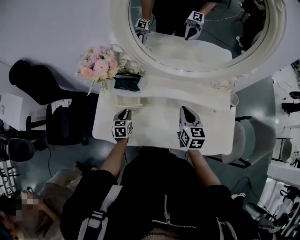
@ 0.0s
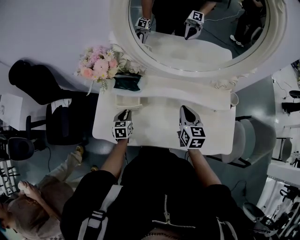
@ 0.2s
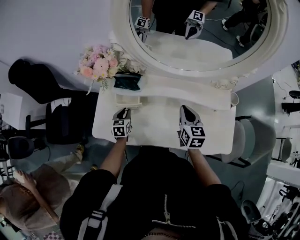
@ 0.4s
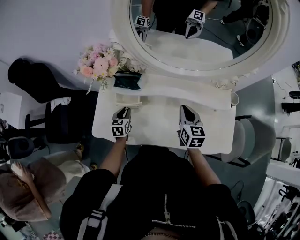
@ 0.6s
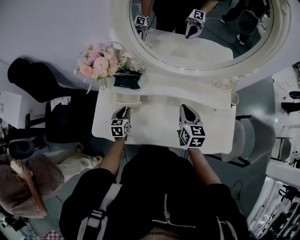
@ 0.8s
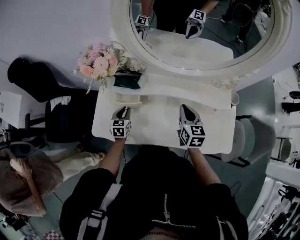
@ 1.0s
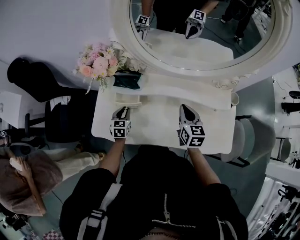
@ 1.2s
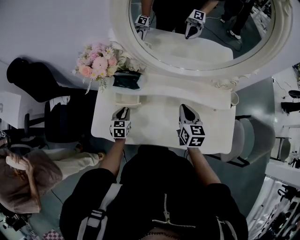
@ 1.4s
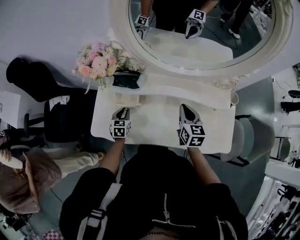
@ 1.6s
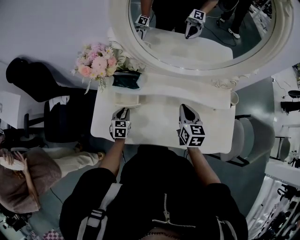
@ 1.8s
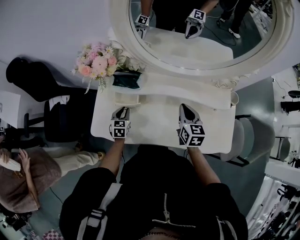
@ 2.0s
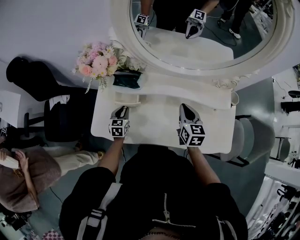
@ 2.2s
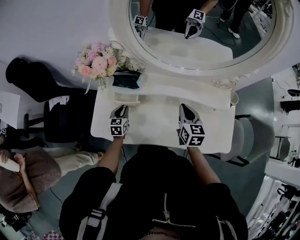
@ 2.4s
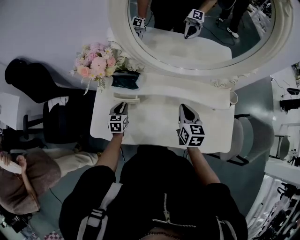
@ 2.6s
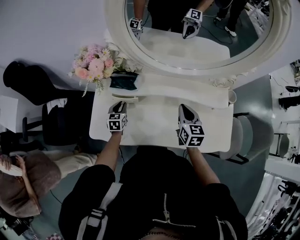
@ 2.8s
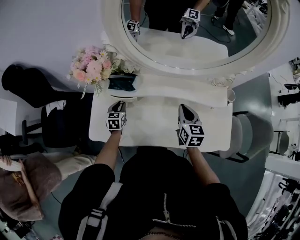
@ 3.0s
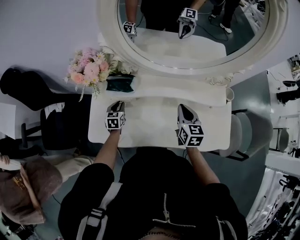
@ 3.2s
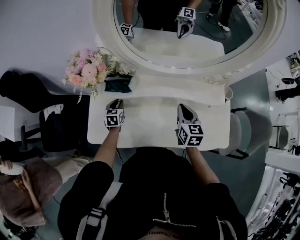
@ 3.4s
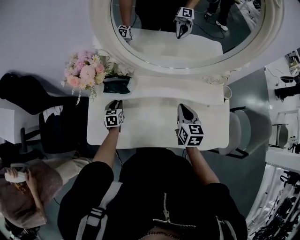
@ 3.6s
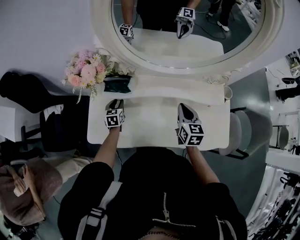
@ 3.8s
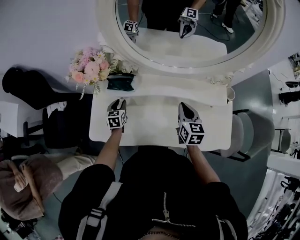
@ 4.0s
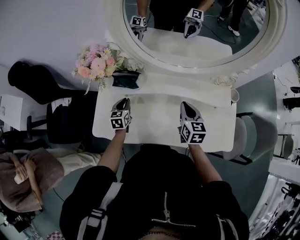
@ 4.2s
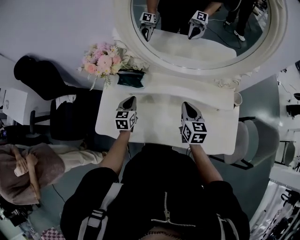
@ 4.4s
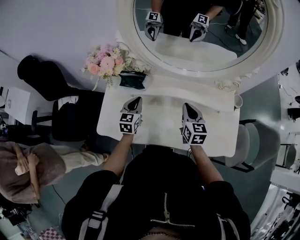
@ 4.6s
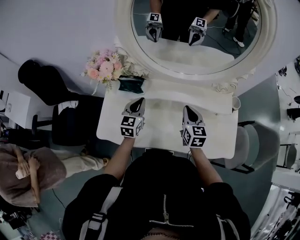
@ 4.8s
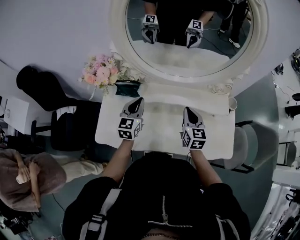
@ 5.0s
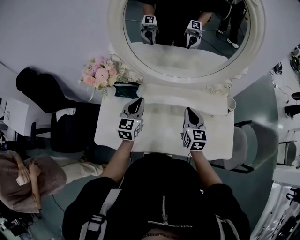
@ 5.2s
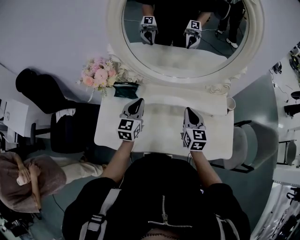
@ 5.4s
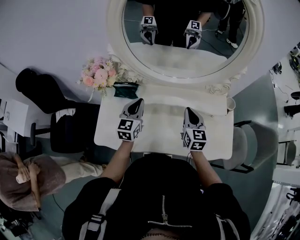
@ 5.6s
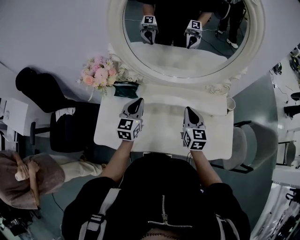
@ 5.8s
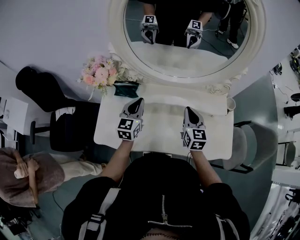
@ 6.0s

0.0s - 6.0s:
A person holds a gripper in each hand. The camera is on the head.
0.0s - 1.6s: The grippers stay close to where they were, moving slightly.
1.6s - 3.0s: The left gripper moves forward, roughly 5 cm.
3.0s - 4.4s: The left gripper is displaced upward by approximately 10 cm.
4.4s - 6.0s: The right gripper ends up about 5 cm from where it was. Meanwhile the left gripper is displaced upward and to the right by about 15 cm.

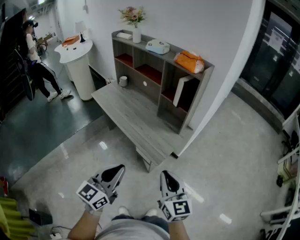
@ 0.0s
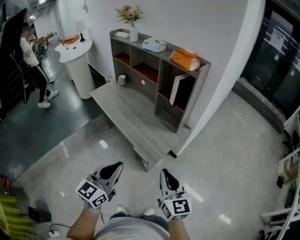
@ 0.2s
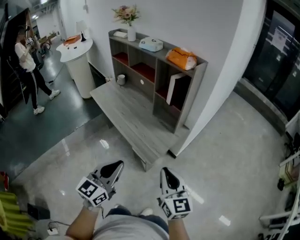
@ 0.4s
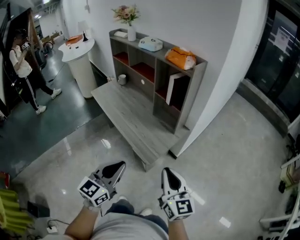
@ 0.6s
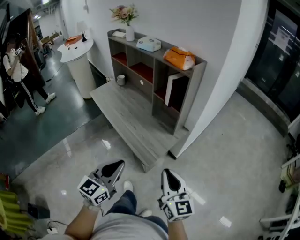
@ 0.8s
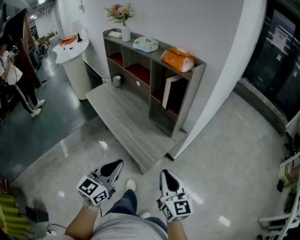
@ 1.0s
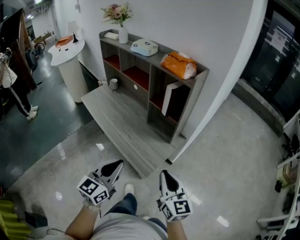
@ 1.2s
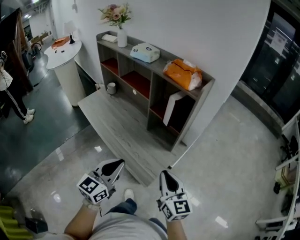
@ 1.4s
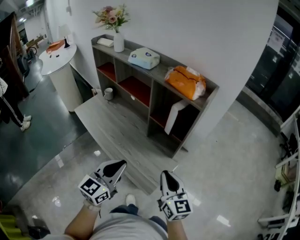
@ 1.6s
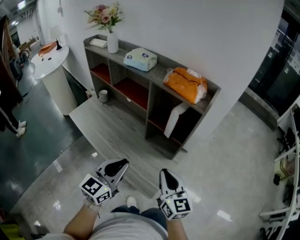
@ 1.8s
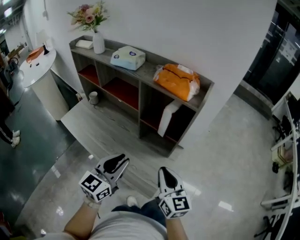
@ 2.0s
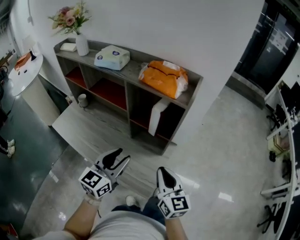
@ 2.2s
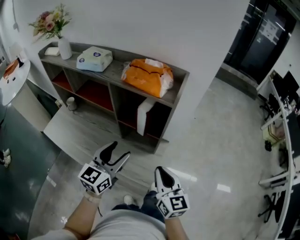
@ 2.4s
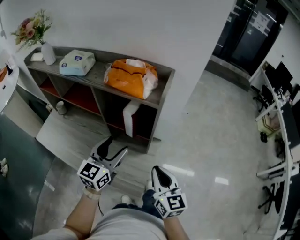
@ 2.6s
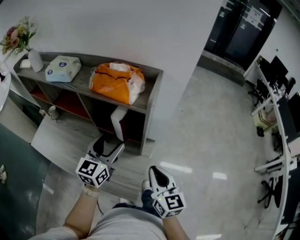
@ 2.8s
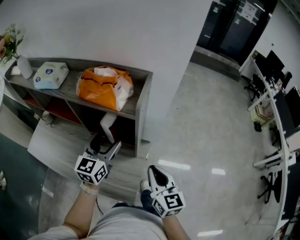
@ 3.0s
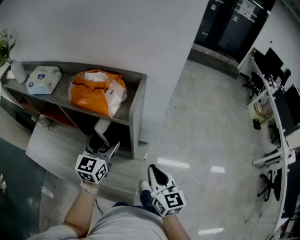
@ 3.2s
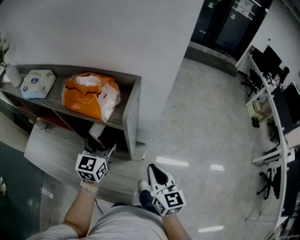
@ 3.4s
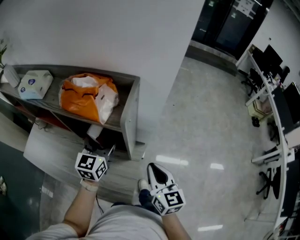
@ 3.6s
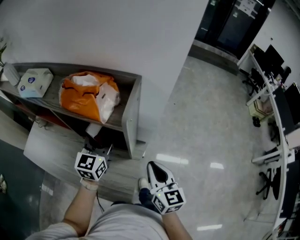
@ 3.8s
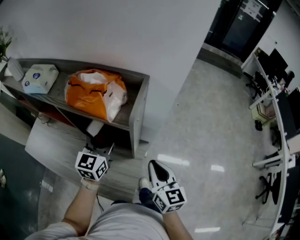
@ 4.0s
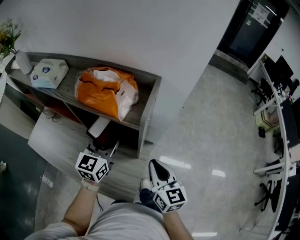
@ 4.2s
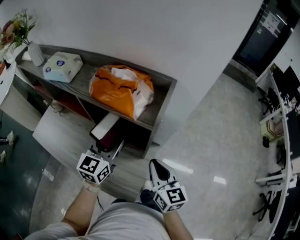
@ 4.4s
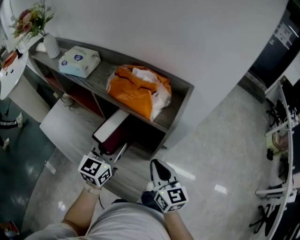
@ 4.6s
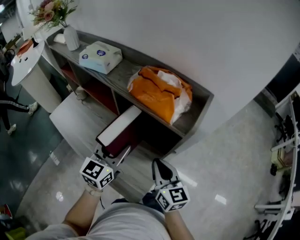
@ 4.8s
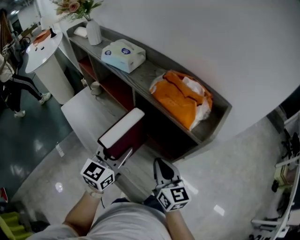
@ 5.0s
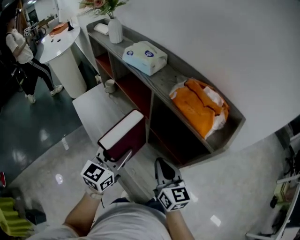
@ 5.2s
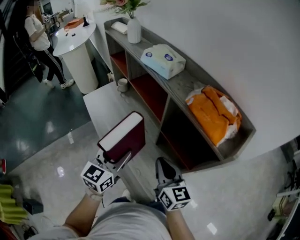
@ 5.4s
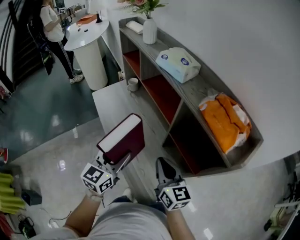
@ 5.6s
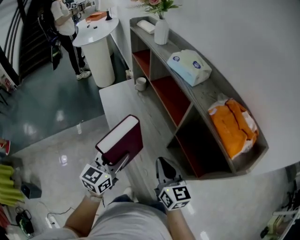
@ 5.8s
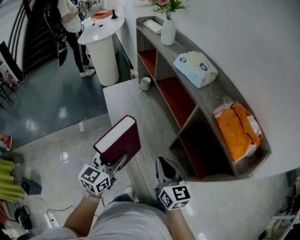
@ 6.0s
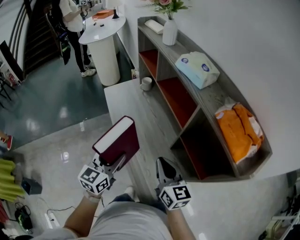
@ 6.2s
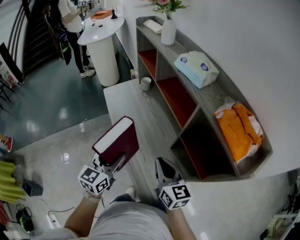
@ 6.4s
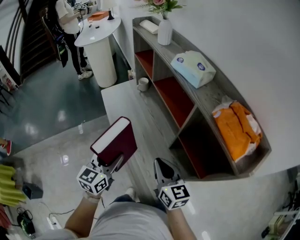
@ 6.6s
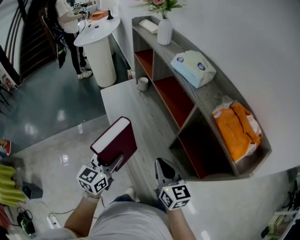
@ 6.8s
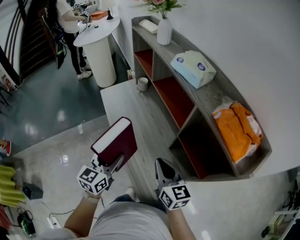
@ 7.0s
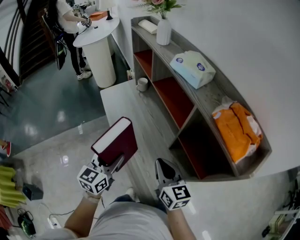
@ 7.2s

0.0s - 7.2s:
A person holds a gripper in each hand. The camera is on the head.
0.0s - 1.4s: Both grippers travel together forward, approximately 20 cm.
1.4s - 2.8s: The right gripper heads forward, covering some 15 cm, and swivels roughly 20 degrees. Meanwhile the left gripper is displaced forward by approximately 30 cm, and opens its fingers.
2.8s - 4.4s: The grippers both shift forward by about 5 cm.
4.4s - 5.8s: The left gripper moves about 30 cm, and rotates about 40 degrees; the right gripper moves some 25 cm, and rotates approximately 40 degrees.
5.8s - 7.2s: There are only small adjustments of the grippers.

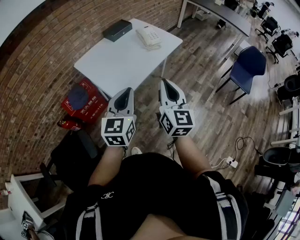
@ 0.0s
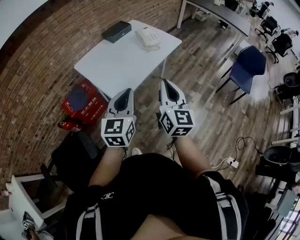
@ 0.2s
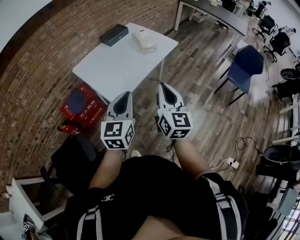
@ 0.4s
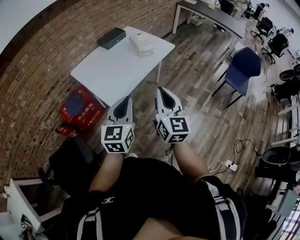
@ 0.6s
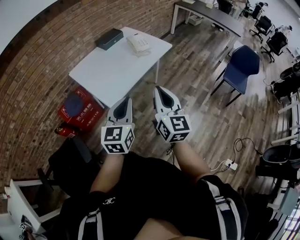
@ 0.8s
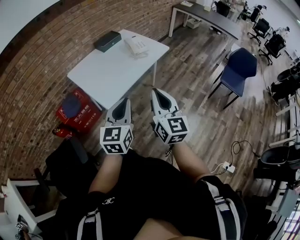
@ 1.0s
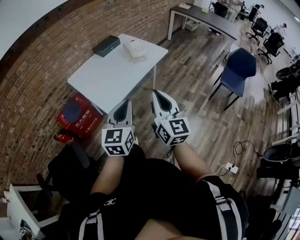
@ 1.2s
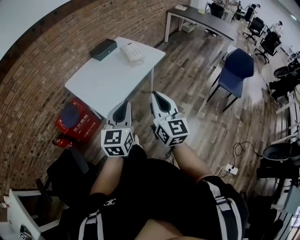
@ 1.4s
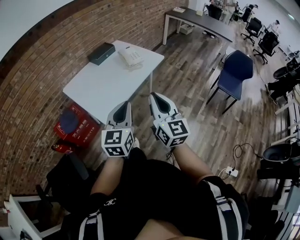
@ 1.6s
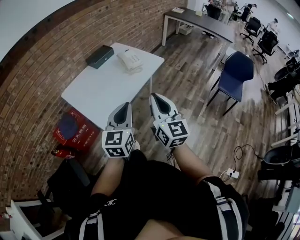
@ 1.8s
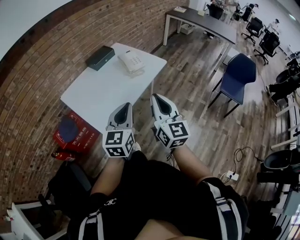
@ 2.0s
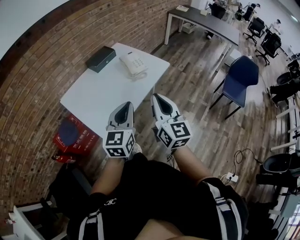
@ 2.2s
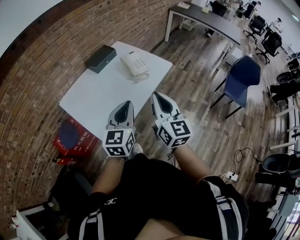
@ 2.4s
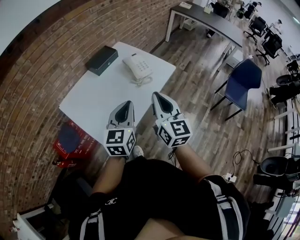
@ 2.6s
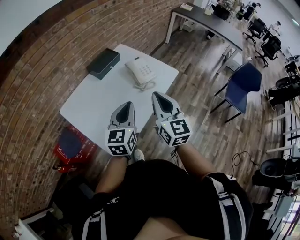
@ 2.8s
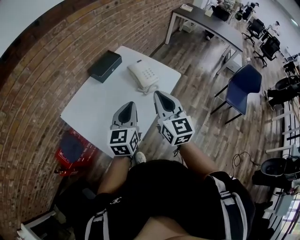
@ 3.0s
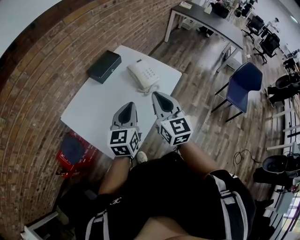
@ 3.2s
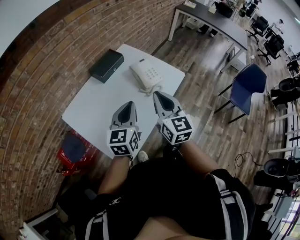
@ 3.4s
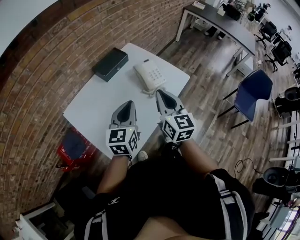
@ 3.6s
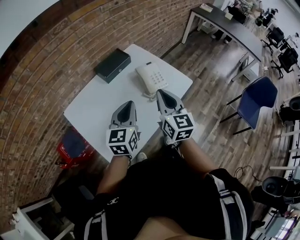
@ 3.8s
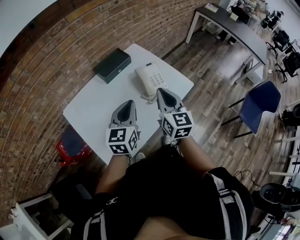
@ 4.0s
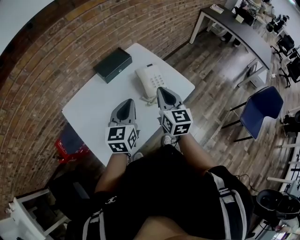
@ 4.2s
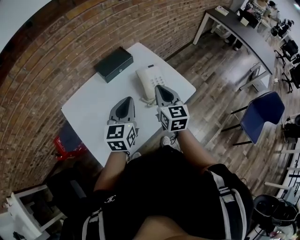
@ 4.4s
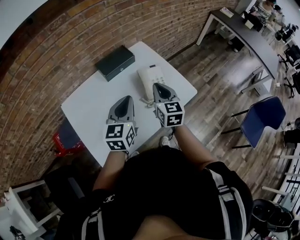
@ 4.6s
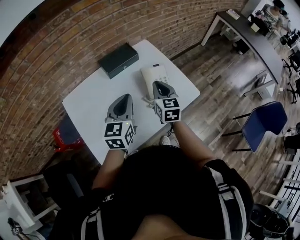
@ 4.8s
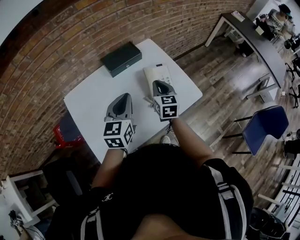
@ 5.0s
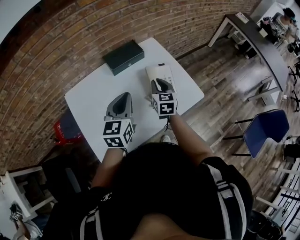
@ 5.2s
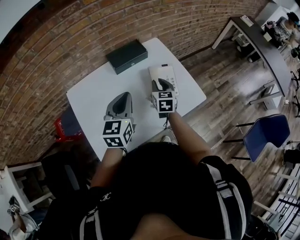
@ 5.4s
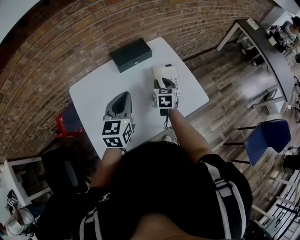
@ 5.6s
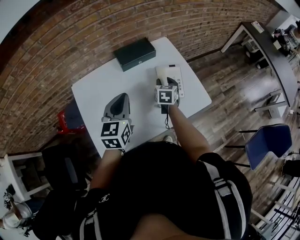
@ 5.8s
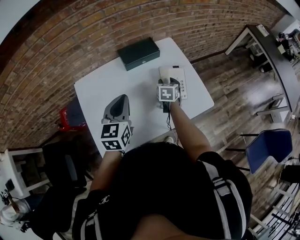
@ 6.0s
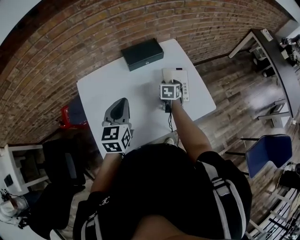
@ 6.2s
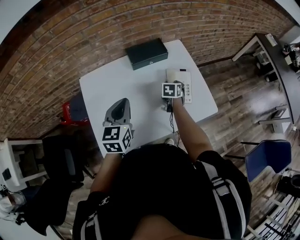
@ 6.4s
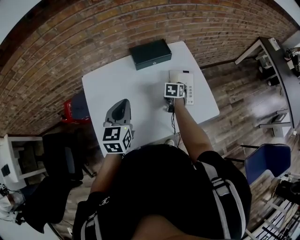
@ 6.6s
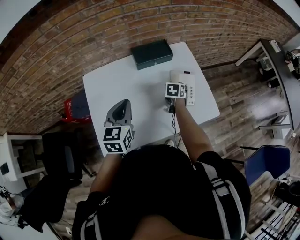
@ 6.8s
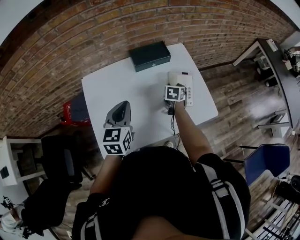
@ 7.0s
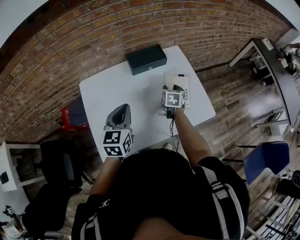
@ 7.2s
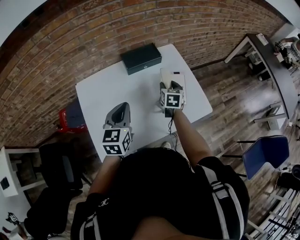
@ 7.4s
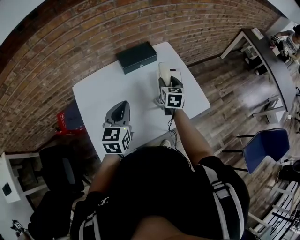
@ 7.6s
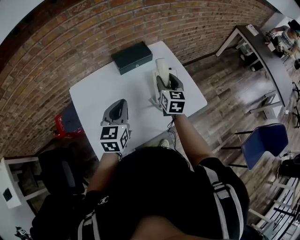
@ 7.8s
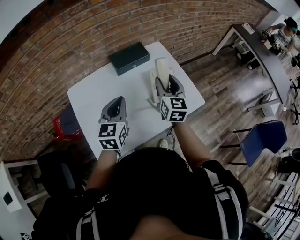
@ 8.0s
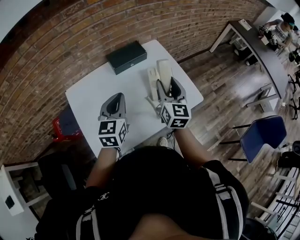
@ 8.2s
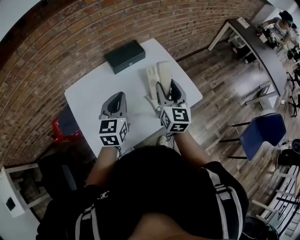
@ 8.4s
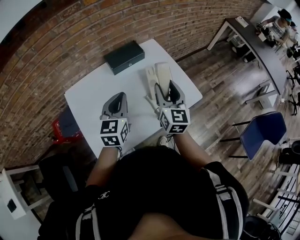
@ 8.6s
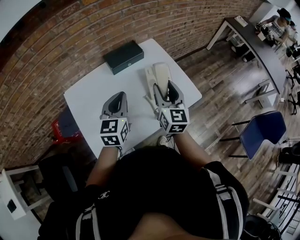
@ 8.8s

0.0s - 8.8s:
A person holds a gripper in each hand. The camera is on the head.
0.0s - 1.4s: Both grippers move to the right, approximately 10 cm.
1.4s - 3.0s: The two grippers go some 35 cm forward.
3.0s - 4.4s: The right gripper heads forward and downward, covering some 20 cm. Meanwhile the left gripper is displaced forward by approximately 15 cm.
4.4s - 5.8s: The left gripper travels to the left by approximately 5 cm. Meanwhile the right gripper moves downward and forward, about 20 cm, turns by some 20 degrees, and opens its fingers.
5.8s - 7.4s: The right gripper moves some 5 cm downward and comes back.
7.4s - 8.8s: The right gripper moves upward and backward, some 20 cm, and turns by roughly 30 degrees.

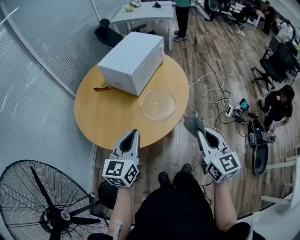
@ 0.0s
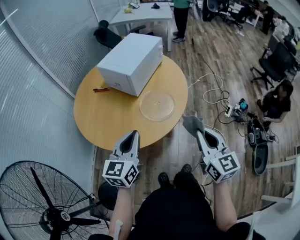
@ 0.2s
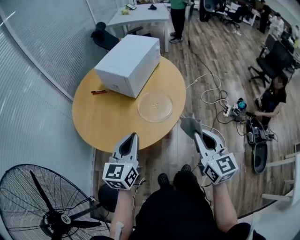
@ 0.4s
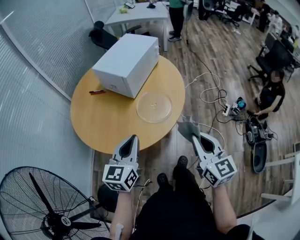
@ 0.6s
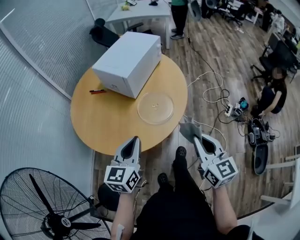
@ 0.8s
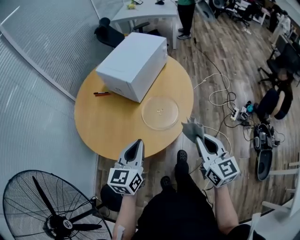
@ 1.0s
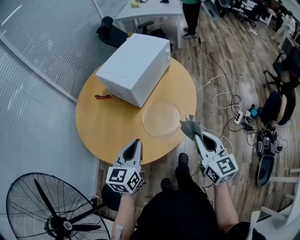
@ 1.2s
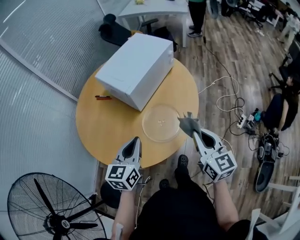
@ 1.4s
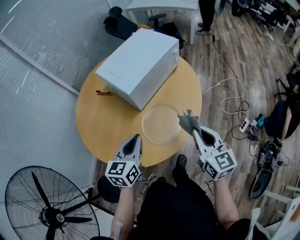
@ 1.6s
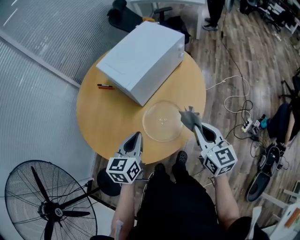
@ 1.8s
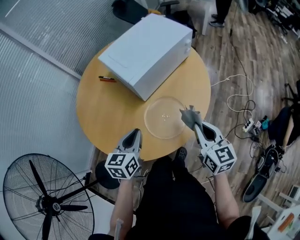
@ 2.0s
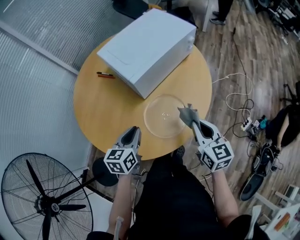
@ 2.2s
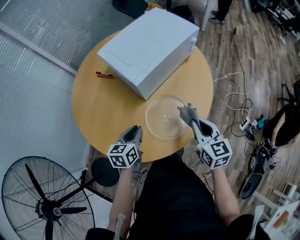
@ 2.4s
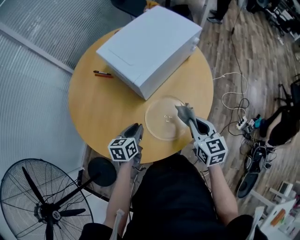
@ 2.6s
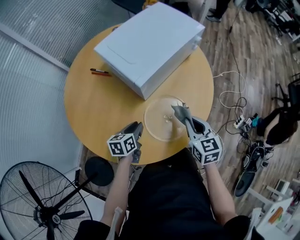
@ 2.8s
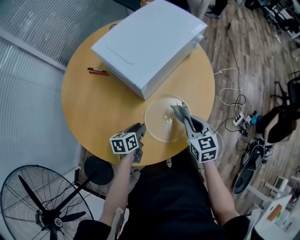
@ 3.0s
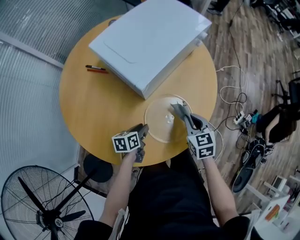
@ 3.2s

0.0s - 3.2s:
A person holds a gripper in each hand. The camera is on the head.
0.0s - 1.6s: Both grippers travel together forward, roughly 20 cm.
1.6s - 3.2s: The left gripper moves downward, some 25 cm, changes its angle by approximately 40 degrees, and opens. The right gripper goes approximately 25 cm downward, forward and to the left, and changes its angle by about 30 degrees.
